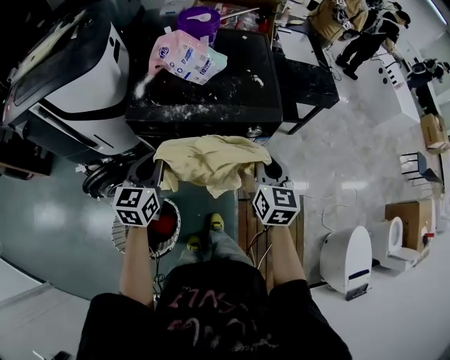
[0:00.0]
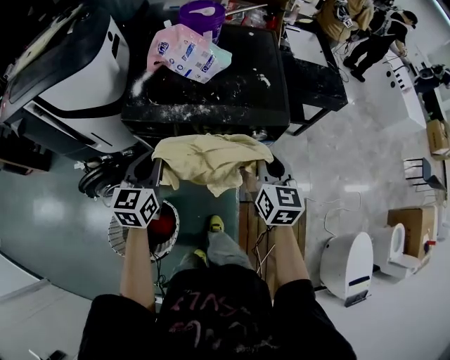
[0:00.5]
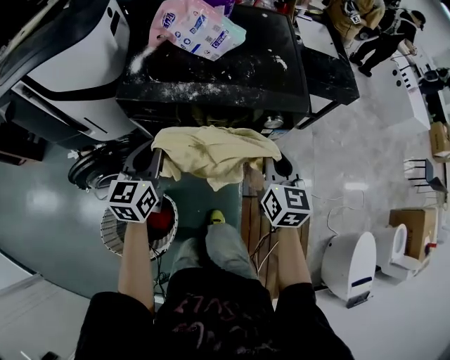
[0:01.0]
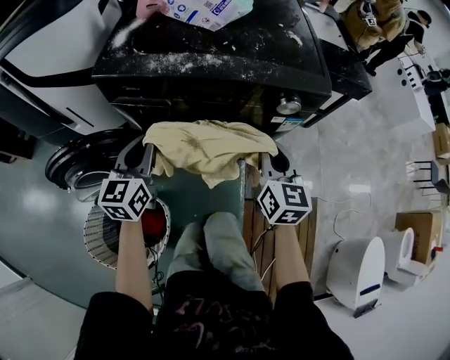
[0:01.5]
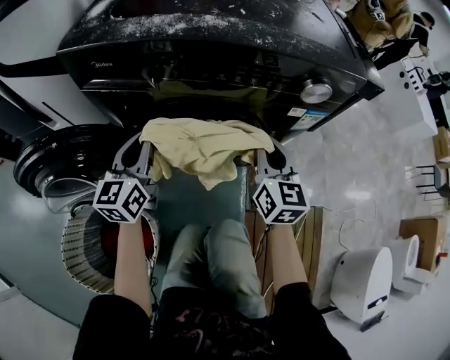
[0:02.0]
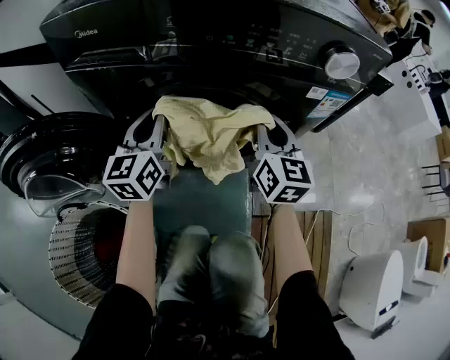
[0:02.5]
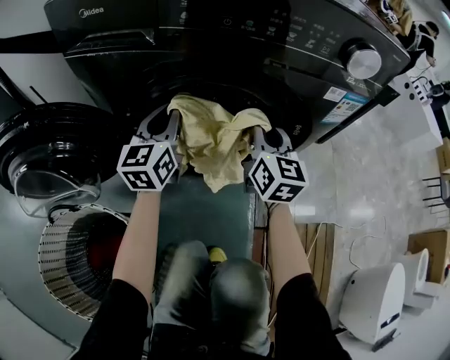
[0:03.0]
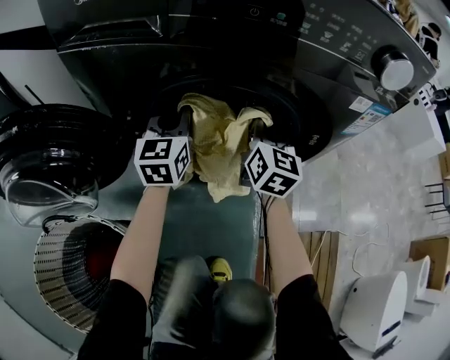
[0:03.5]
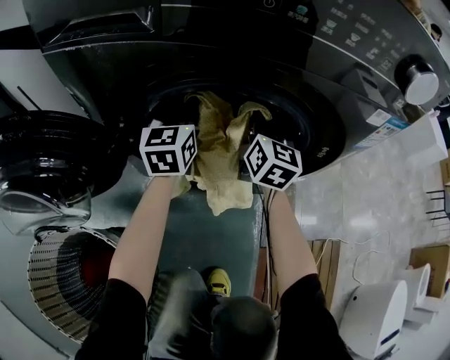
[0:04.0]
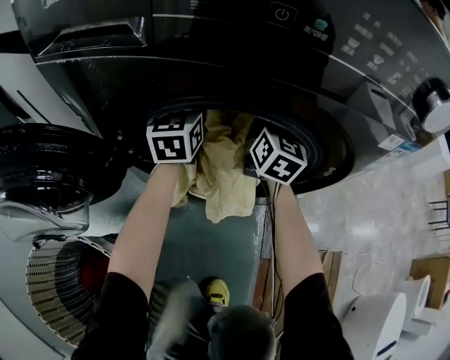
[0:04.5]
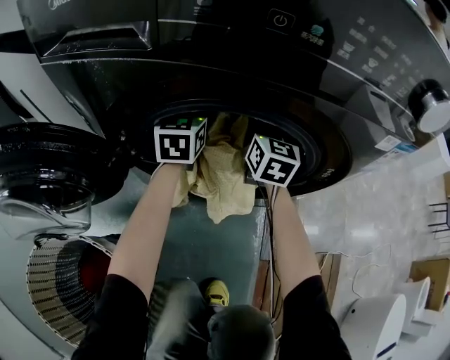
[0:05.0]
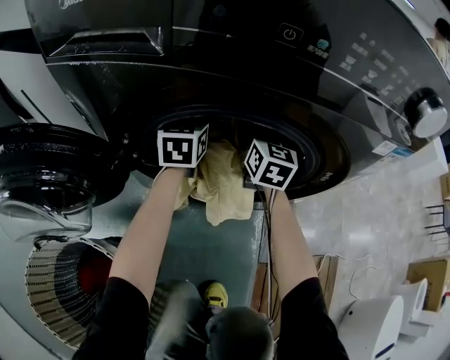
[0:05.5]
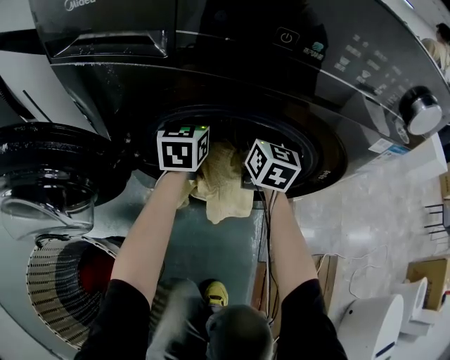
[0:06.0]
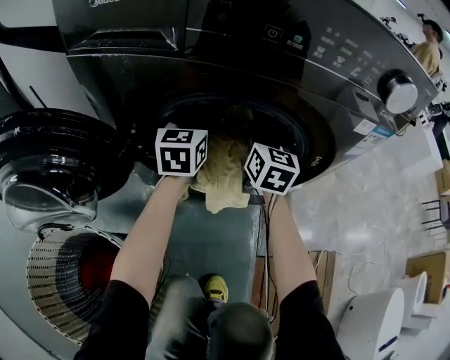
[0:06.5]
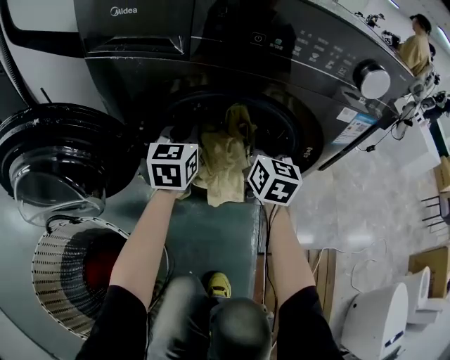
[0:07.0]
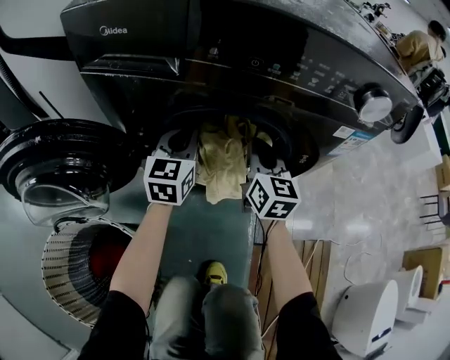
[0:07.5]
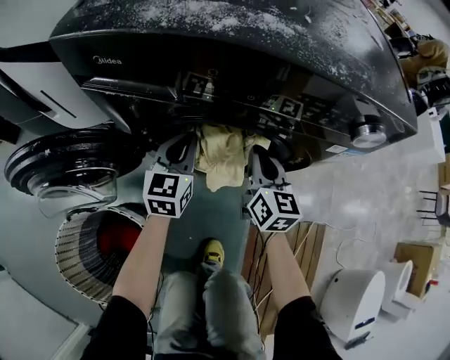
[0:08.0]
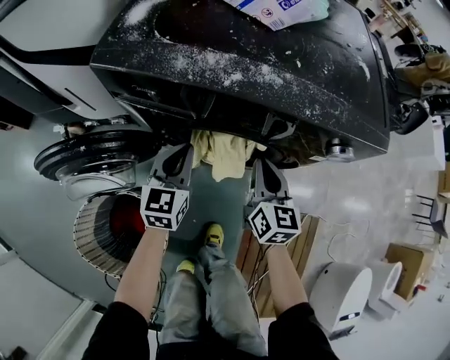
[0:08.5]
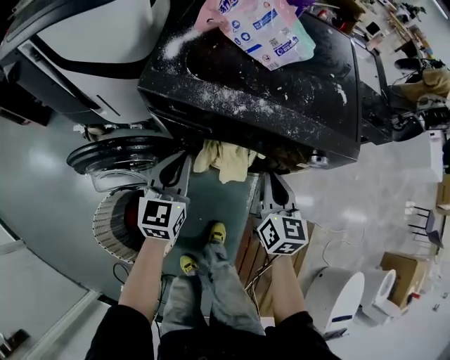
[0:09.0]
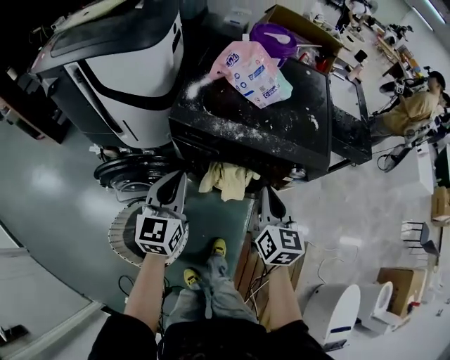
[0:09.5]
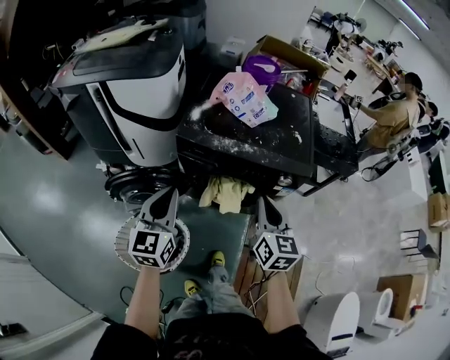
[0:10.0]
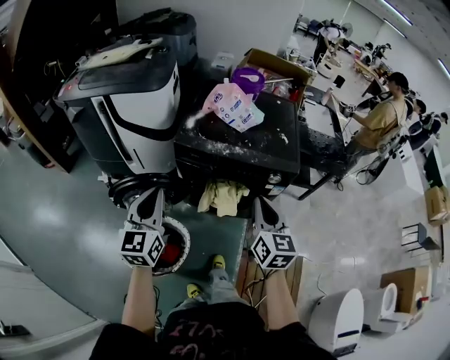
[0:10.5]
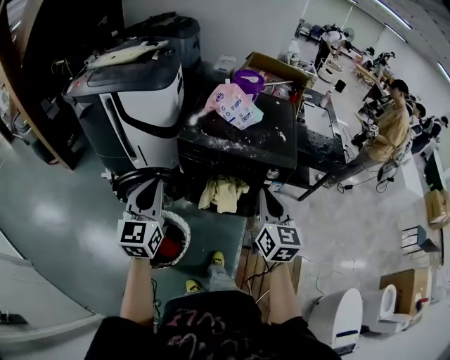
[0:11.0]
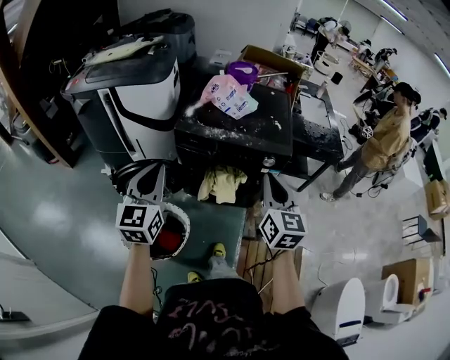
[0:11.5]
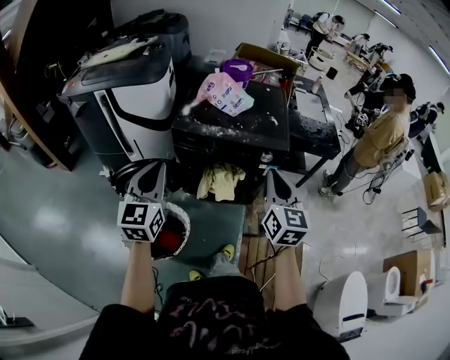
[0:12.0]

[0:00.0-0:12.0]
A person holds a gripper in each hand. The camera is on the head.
0:00.0 to 0:02.0: Both grippers travel together downward, roughly 30 cm.
0:02.0 to 0:04.0: The two grippers go approximately 25 cm forward and downward.
0:04.0 to 0:06.0: The right gripper opens its fingers. The left gripper opens its fingers.
0:06.0 to 0:08.0: The grippers both shift backward and upward by some 15 cm. The right gripper closes up. The left gripper closes.
0:08.0 to 0:10.0: Both grippers move upward and backward, about 50 cm.
0:10.0 to 0:12.0: The left gripper heads upward and backward, covering approximately 15 cm. Meanwhile the right gripper goes roughly 15 cm upward, backward and to the right.

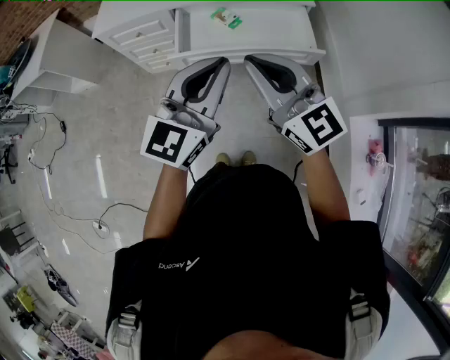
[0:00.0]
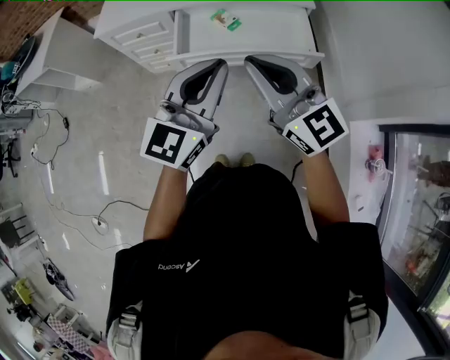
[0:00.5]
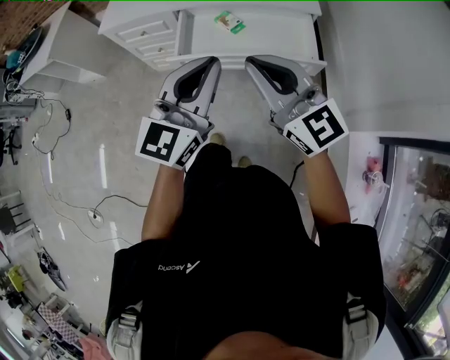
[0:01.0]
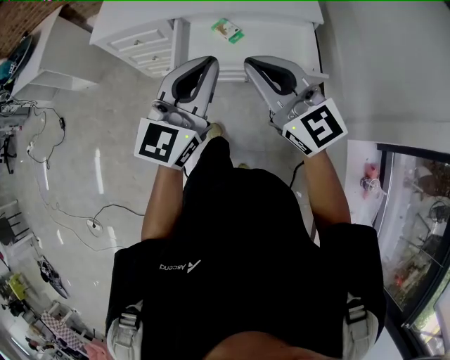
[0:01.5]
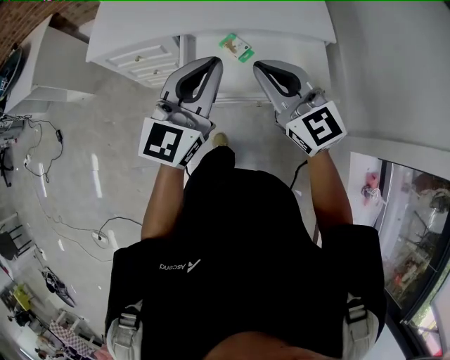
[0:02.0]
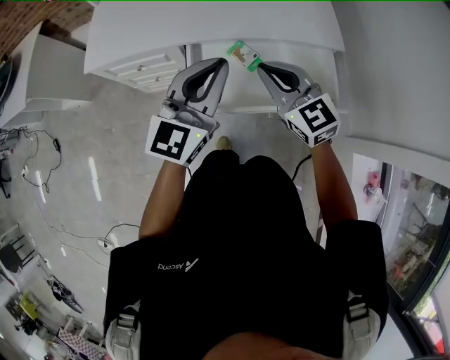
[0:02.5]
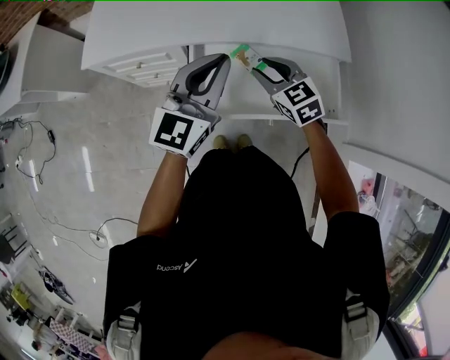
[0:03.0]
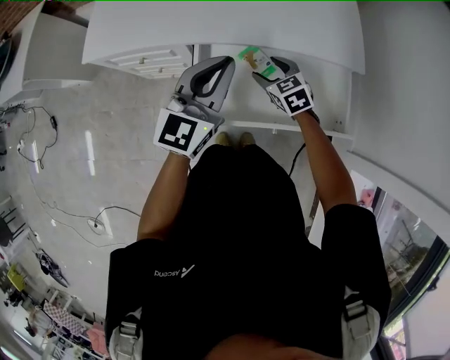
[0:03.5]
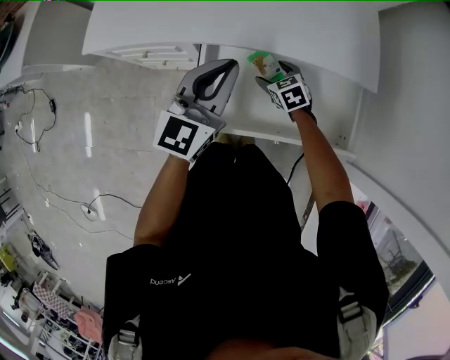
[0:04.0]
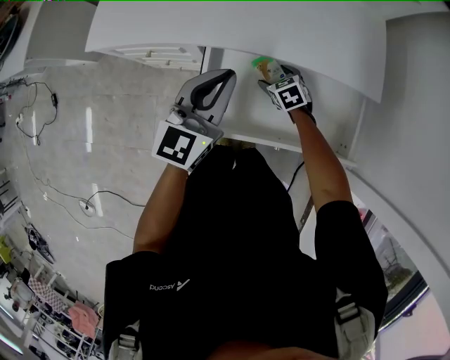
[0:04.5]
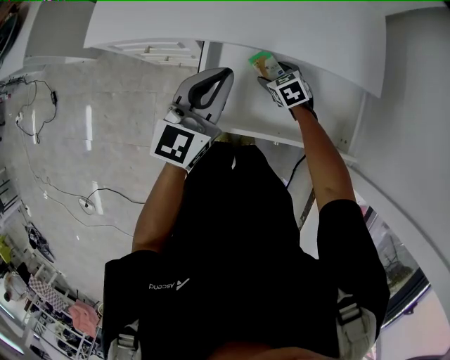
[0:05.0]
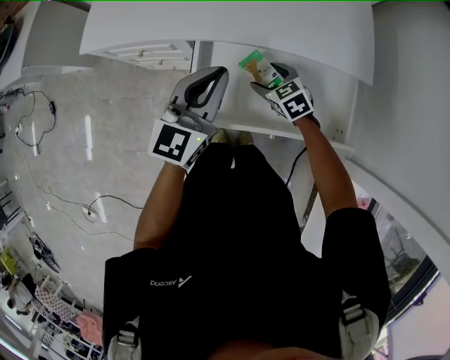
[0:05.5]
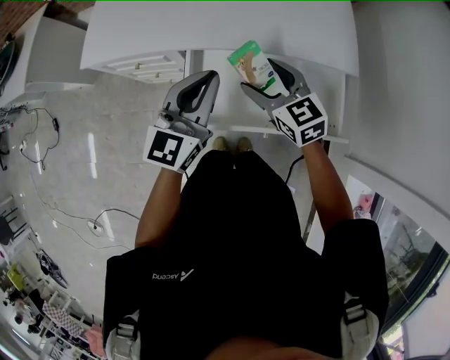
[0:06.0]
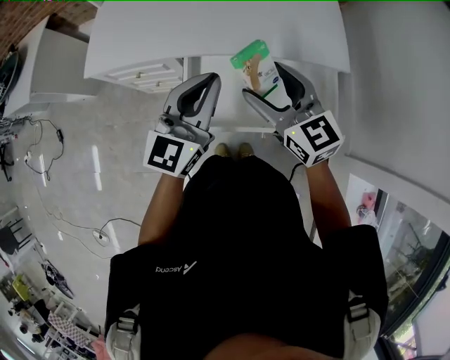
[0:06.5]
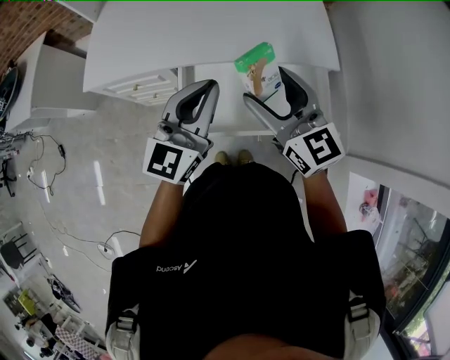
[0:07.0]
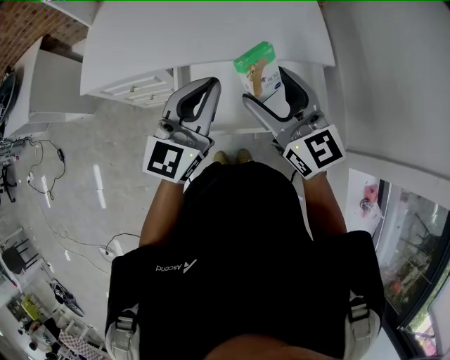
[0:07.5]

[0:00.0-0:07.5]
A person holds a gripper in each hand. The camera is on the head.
0:00.0 to 0:02.0: The two grippers go about 20 cm forward.
0:02.0 to 0:04.0: The left gripper travels forward and downward by roughly 25 cm; the right gripper goes roughly 40 cm downward and forward, tips its fingers downward by approximately 50 degrees, and opens.
0:04.0 to 0:05.5: The right gripper goes approximately 5 cm upward.
0:05.5 to 0:07.5: The left gripper shifts about 10 cm upward and to the right. The right gripper shifts roughly 30 cm upward, and tips its fingers upward by some 50 degrees.

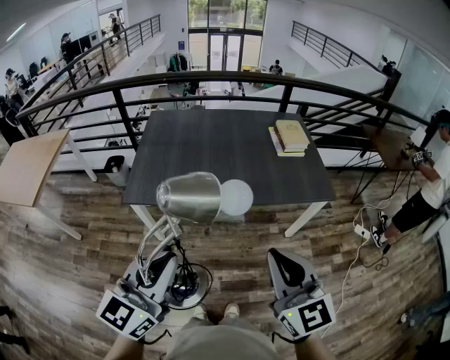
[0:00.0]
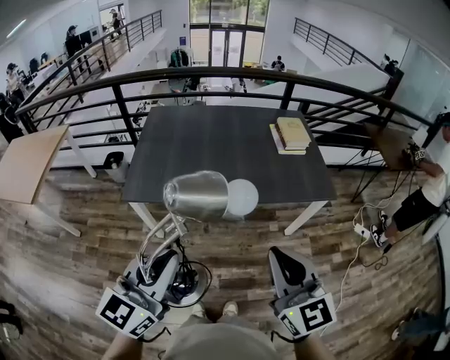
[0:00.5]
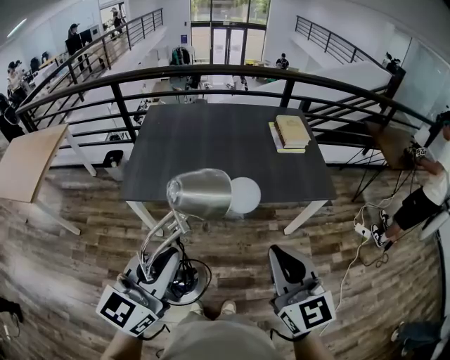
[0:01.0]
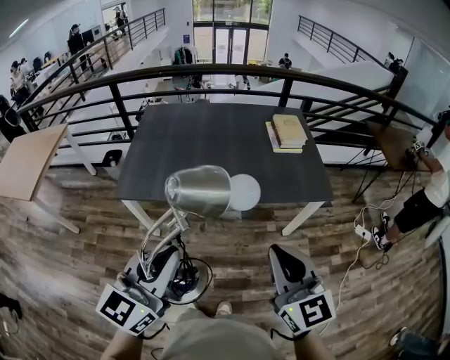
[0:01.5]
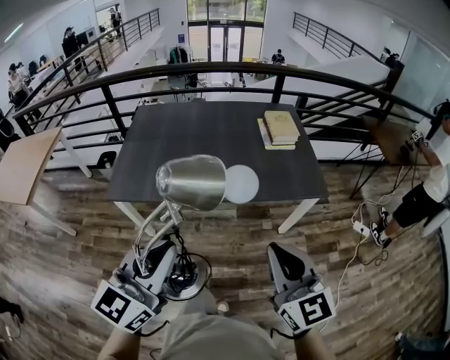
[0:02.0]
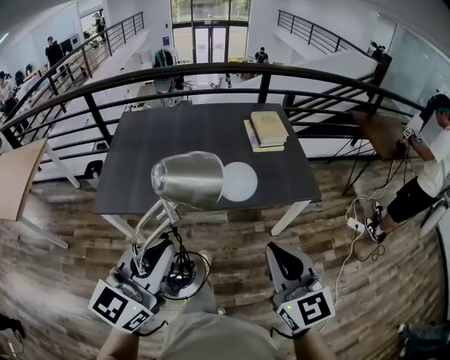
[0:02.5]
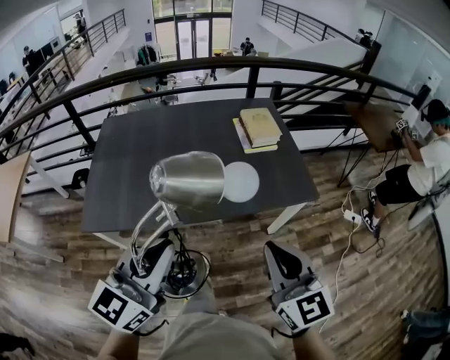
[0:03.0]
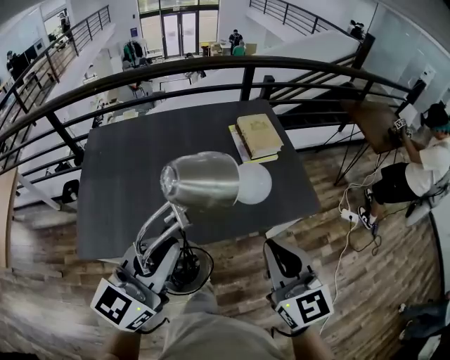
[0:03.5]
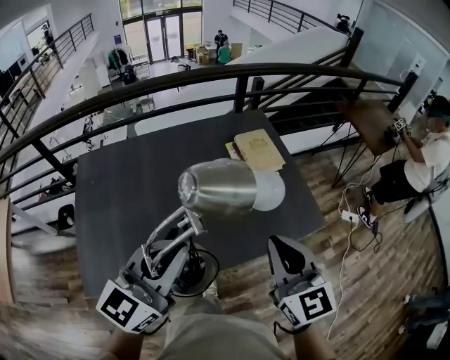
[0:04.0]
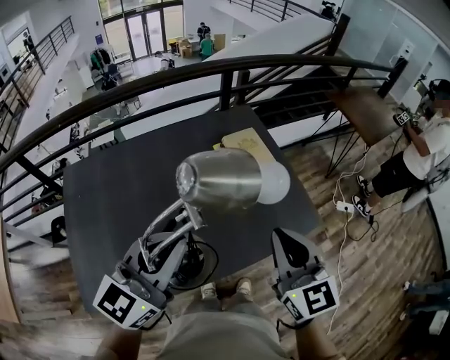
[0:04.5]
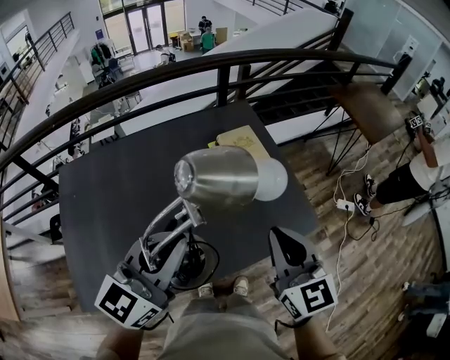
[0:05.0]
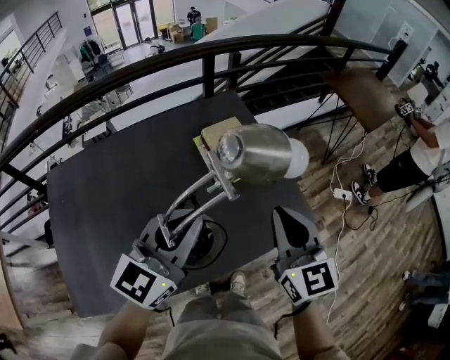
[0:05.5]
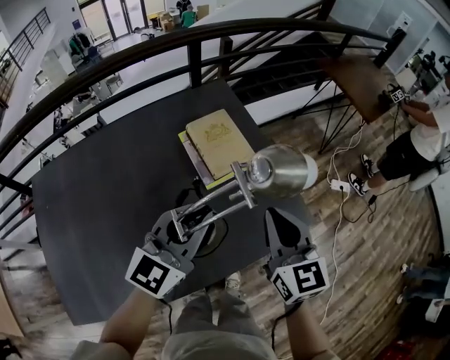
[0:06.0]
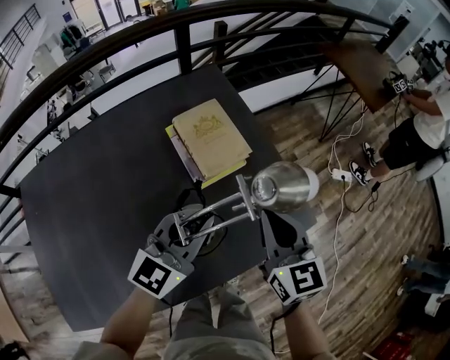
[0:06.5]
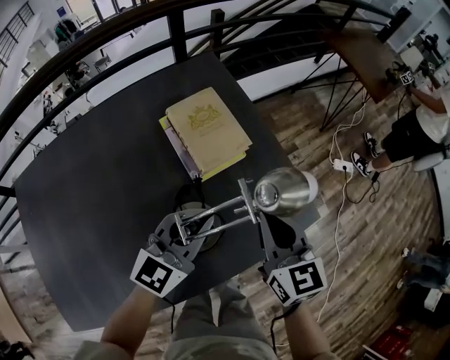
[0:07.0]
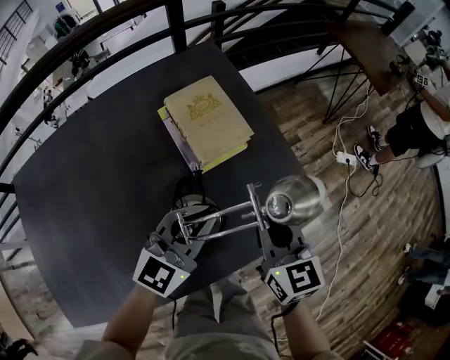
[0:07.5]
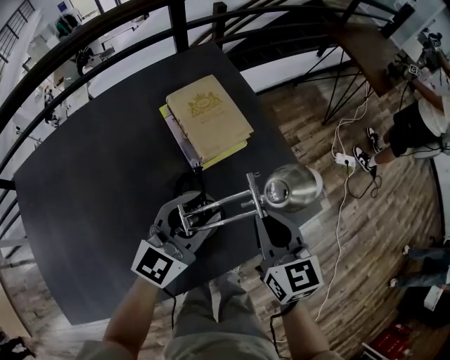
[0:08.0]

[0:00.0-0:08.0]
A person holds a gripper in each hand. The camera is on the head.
0:00.0 to 0:02.0: The left gripper travels to the right and forward by some 10 cm. Meanwhile the right gripper goes some 10 cm to the right.
0:02.0 to 0:04.0: The grippers both shift forward by some 40 cm. The left gripper rotates approximately 20 degrees.
0:04.0 to 0:06.0: The left gripper moves forward, to the right and downward, roughly 35 cm. The right gripper goes approximately 25 cm forward, downward and to the right.
0:06.0 to 0:08.0: Both grippers travel together downward, approximately 15 cm. The left gripper opens.
